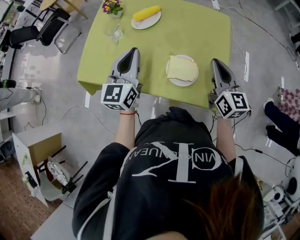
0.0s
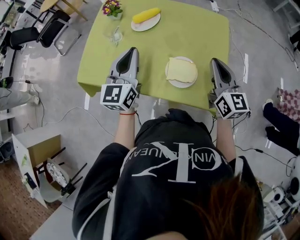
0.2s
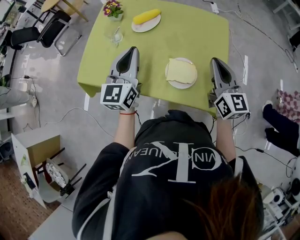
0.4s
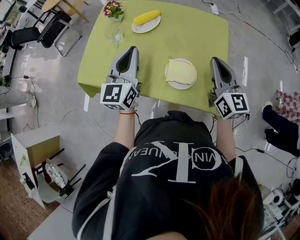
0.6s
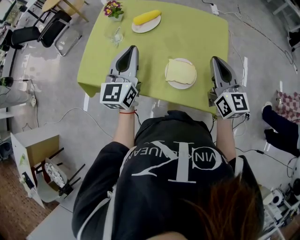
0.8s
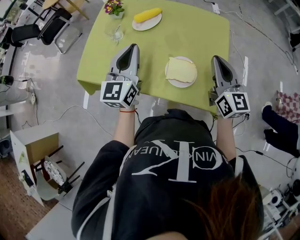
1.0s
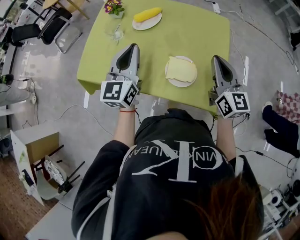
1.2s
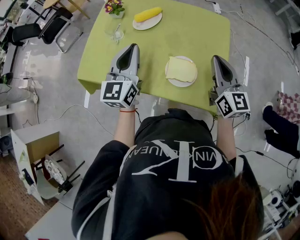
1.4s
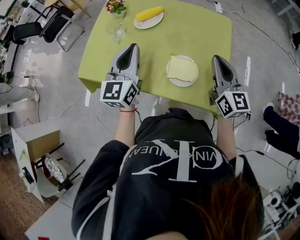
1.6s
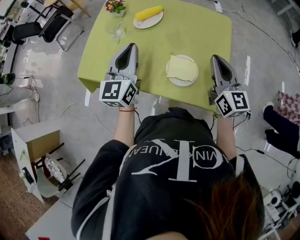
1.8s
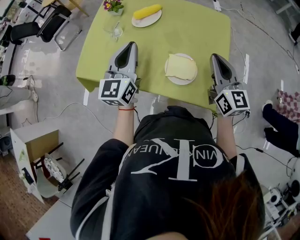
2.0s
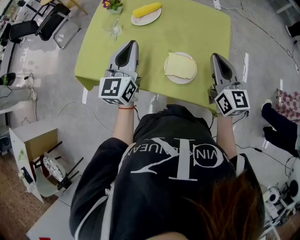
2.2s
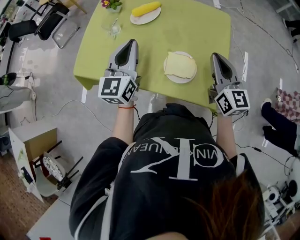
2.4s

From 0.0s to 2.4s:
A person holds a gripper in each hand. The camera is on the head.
From 0.0s to 2.4s: The grippers move only a little.

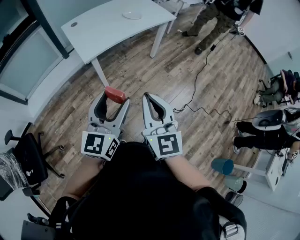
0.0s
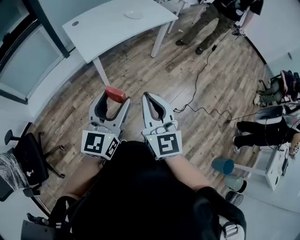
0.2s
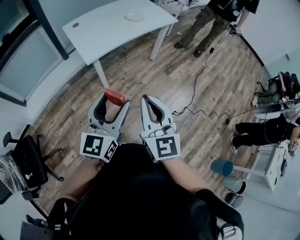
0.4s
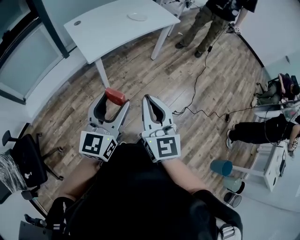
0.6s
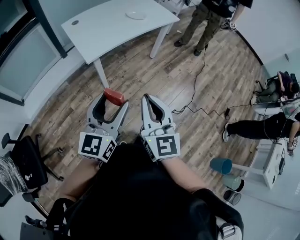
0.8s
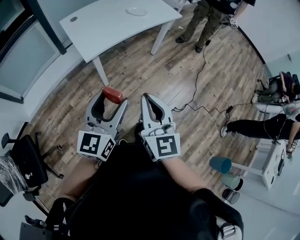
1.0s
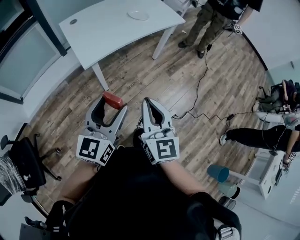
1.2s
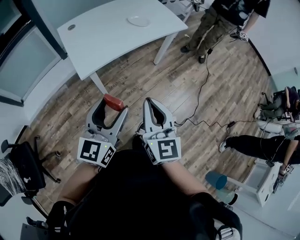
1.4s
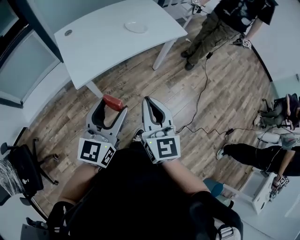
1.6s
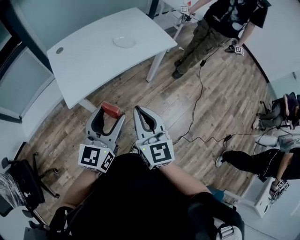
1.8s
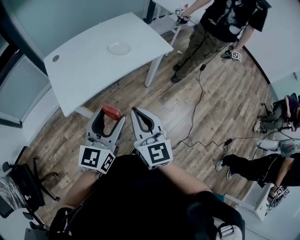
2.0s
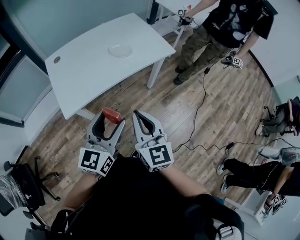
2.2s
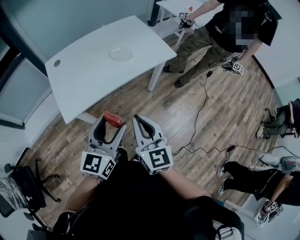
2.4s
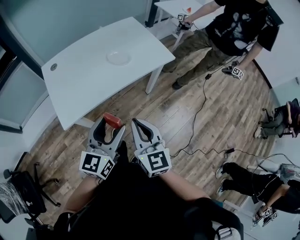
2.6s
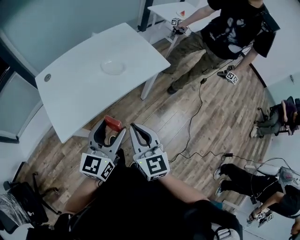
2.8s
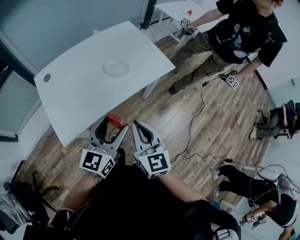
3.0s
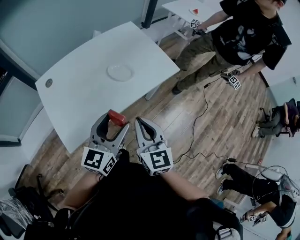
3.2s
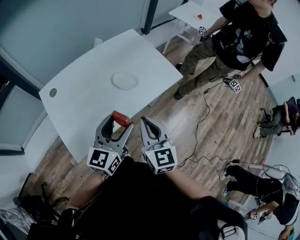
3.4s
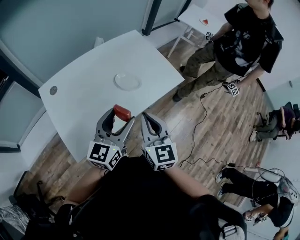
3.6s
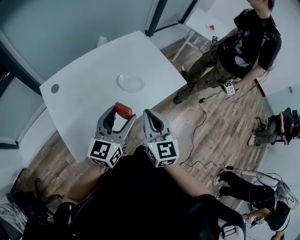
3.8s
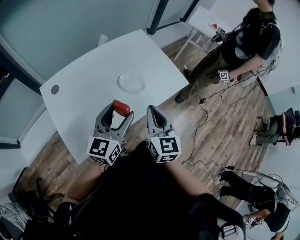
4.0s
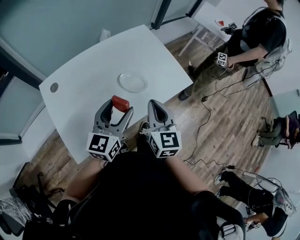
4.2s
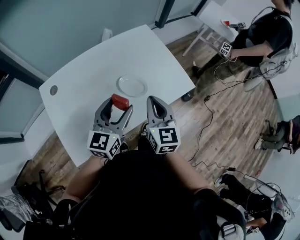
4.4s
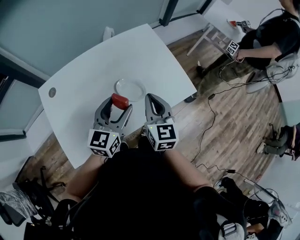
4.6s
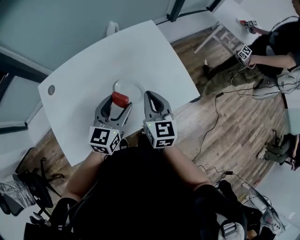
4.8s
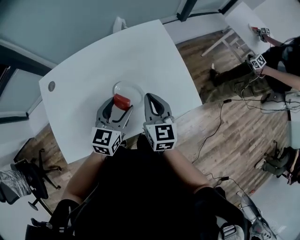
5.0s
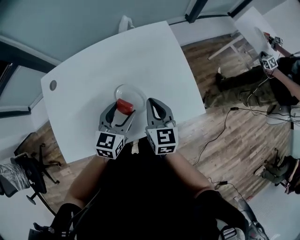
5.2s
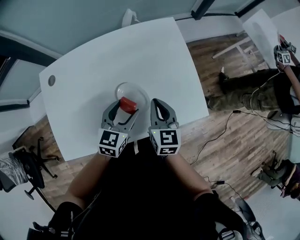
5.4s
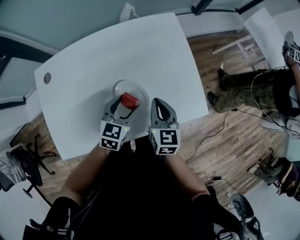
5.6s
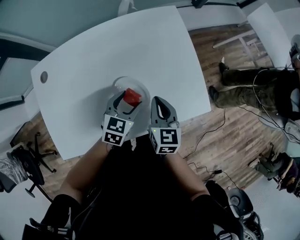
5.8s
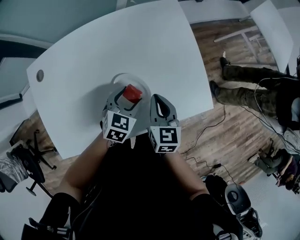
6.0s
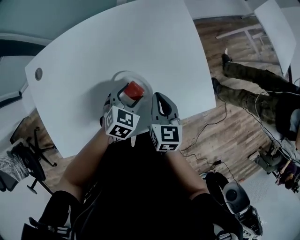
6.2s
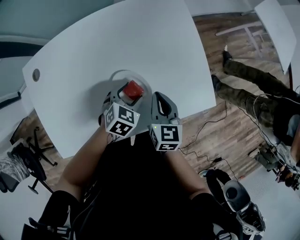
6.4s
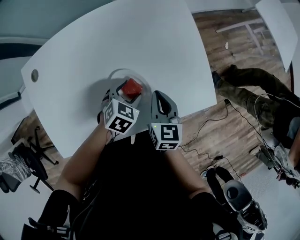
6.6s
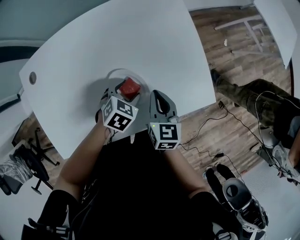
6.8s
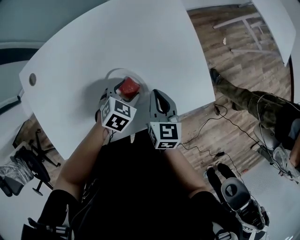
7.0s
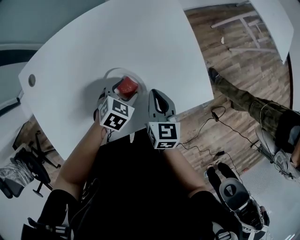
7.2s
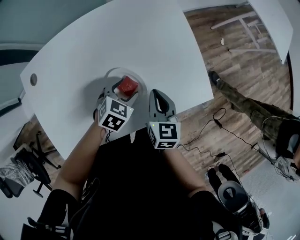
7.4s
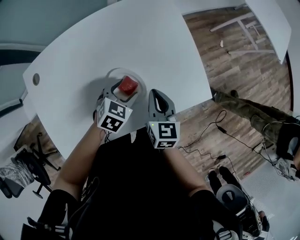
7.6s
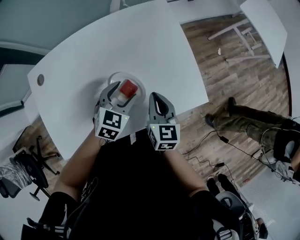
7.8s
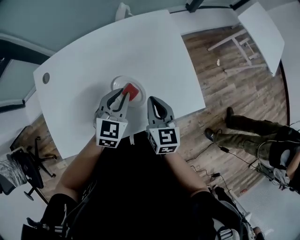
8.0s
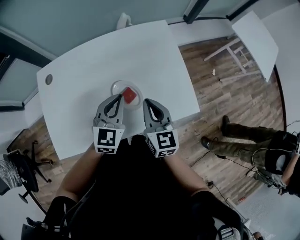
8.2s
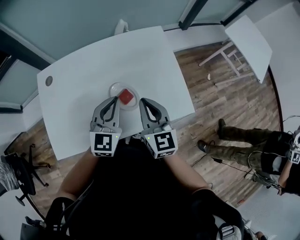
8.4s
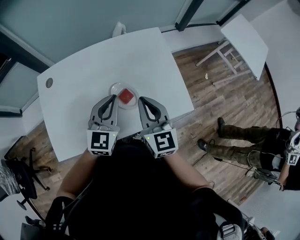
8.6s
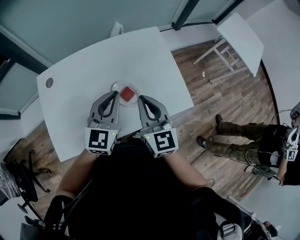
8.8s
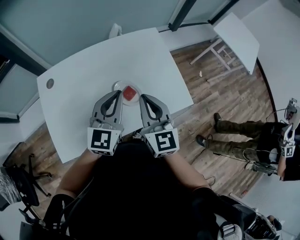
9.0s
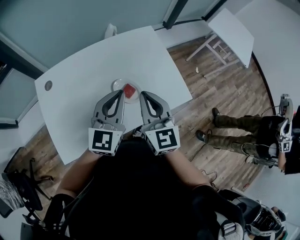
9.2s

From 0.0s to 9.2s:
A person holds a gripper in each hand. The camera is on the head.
From 0.0s to 1.6s: Both grippers travel together forward, roughly 25 cm.
From 1.6s to 3.0s: The grippers both shift forward by some 20 cm.
From 3.0s to 4.6s: The grippers both shift forward by roughly 25 cm.
From 4.6s to 6.2s: The two grippers go approximately 20 cm downward and forward. The left gripper angles its fingers downward, by about 40 degrees.
From 6.2s to 7.6s: There are only small adjustments of the grippers.
From 7.6s to 9.2s: Both grippers move upward, some 20 cm. The right gripper changes its angle by roughly 30 degrees. Meanwhile the left gripper tilts its fingers some 50 degrees upward, and closes.

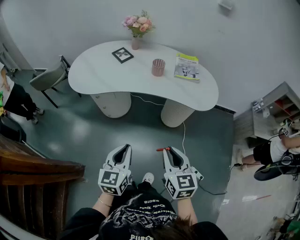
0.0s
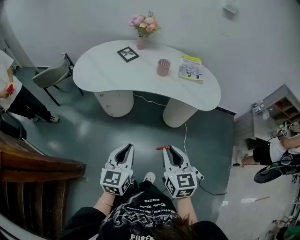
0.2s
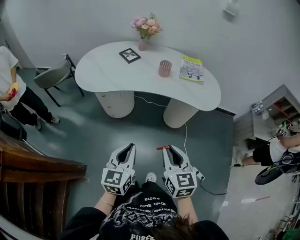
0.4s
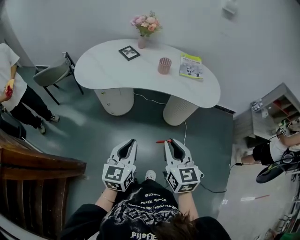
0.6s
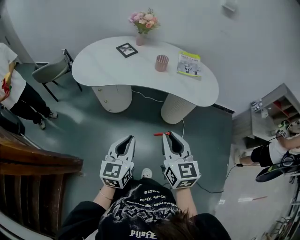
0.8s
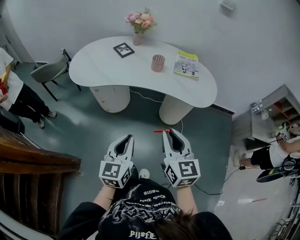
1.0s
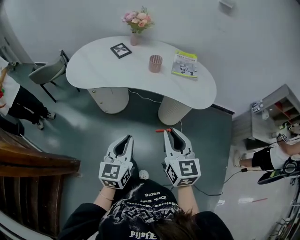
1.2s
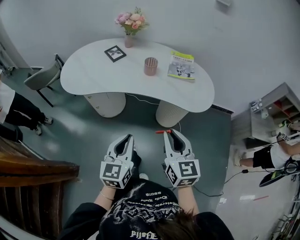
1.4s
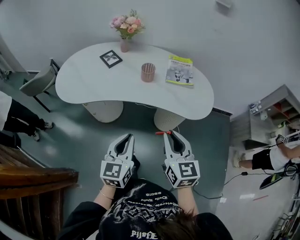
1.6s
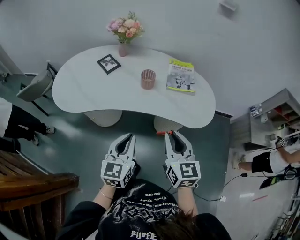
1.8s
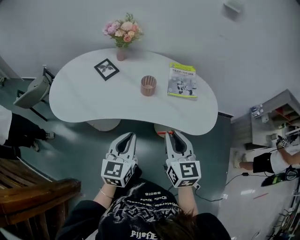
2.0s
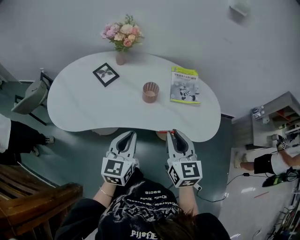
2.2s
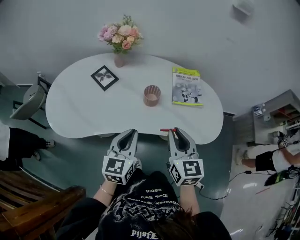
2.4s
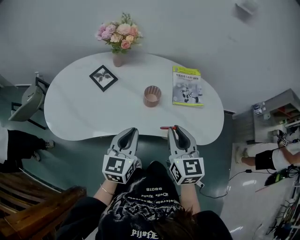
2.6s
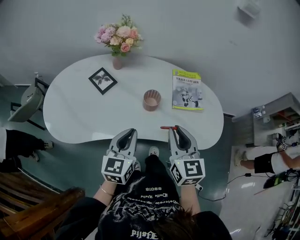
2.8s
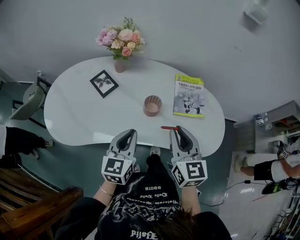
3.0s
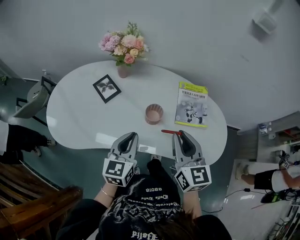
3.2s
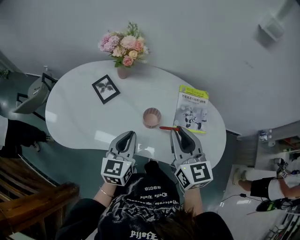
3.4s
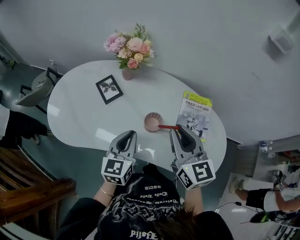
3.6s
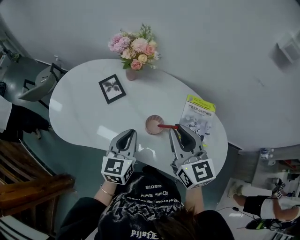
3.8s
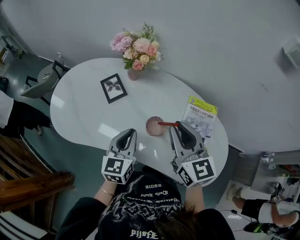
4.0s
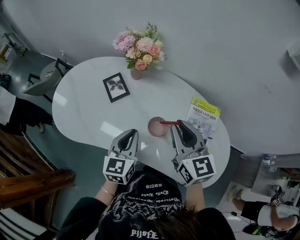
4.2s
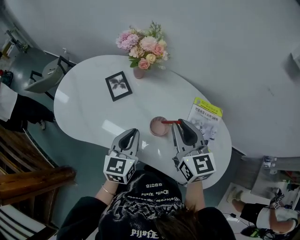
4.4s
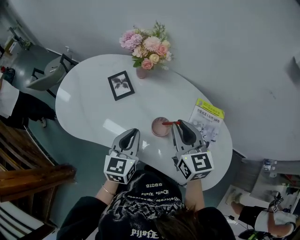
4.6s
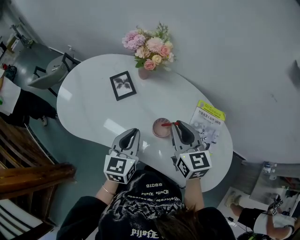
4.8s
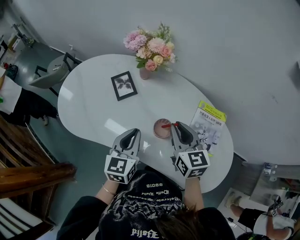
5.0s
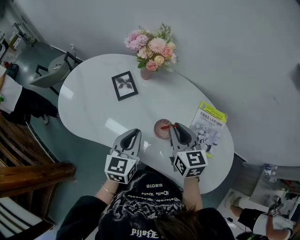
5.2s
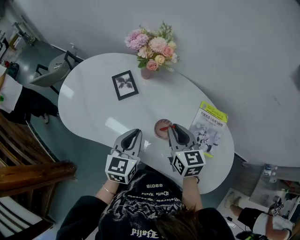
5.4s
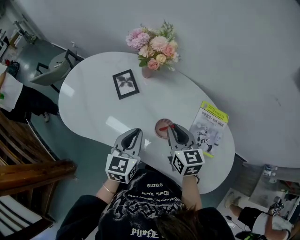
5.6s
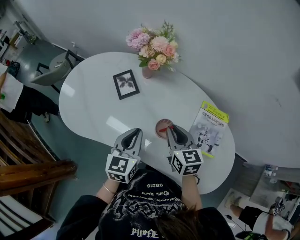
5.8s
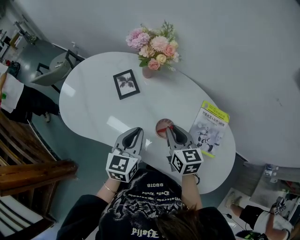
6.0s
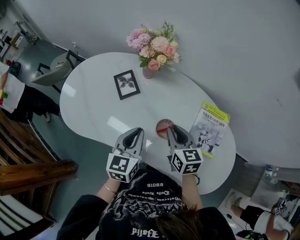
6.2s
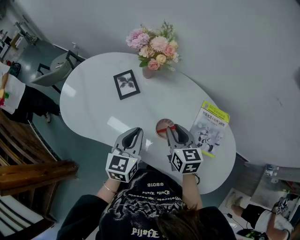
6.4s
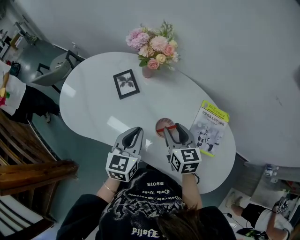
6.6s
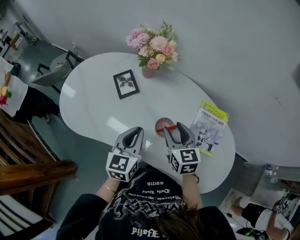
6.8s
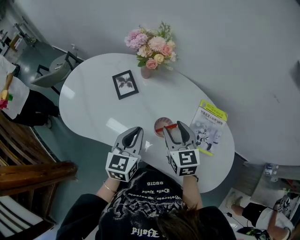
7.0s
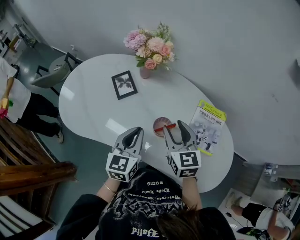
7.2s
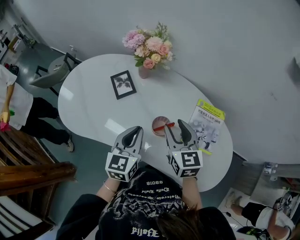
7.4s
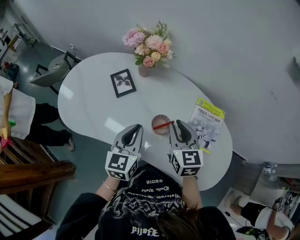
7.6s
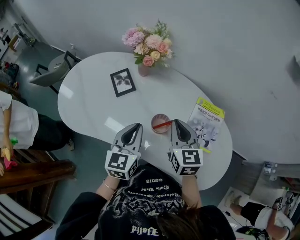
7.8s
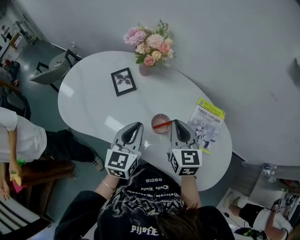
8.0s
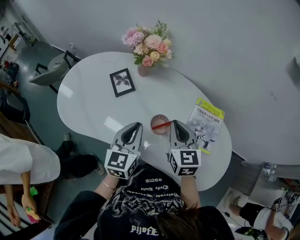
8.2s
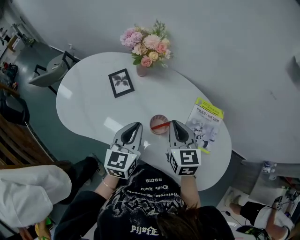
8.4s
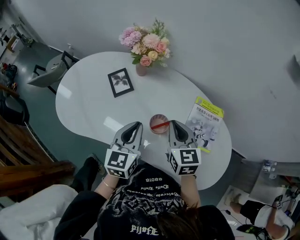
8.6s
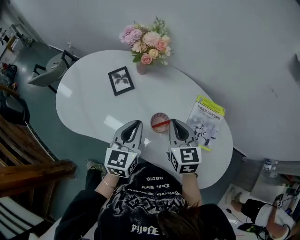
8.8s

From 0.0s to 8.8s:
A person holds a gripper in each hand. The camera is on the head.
From 0.0s to 1.4s: The right gripper heads forward, covering about 10 cm. Meanwhile the left gripper shifts approximately 10 cm forward and to the right.
From 1.4s to 3.0s: Both grippers travel together forward, roughly 35 cm.
From 3.0s to 4.4s: The right gripper travels forward by about 15 cm, and changes its angle by about 20 degrees, while the left gripper shifts about 10 cm forward.
From 4.4s to 5.8s: The right gripper goes some 10 cm downward.
From 5.8s to 7.4s: The right gripper is displaced upward by about 5 cm, and opens its fingers.
From 7.4s to 8.8s: The right gripper closes up.

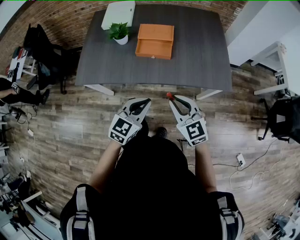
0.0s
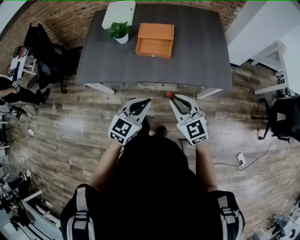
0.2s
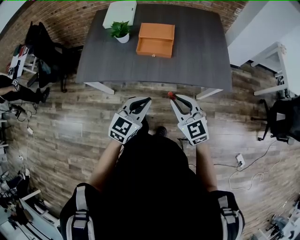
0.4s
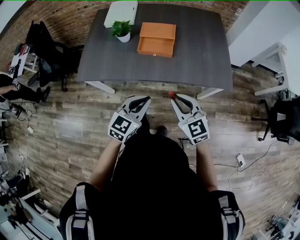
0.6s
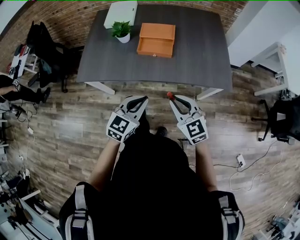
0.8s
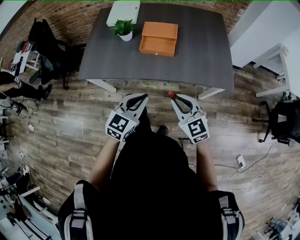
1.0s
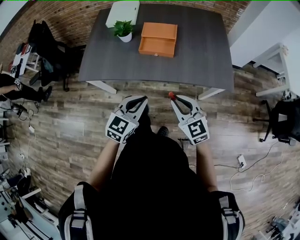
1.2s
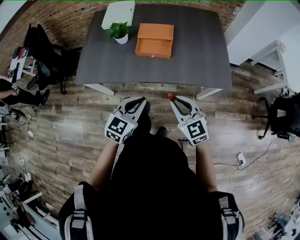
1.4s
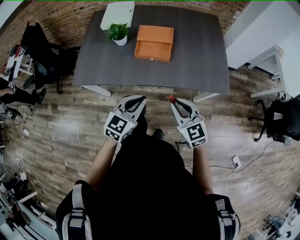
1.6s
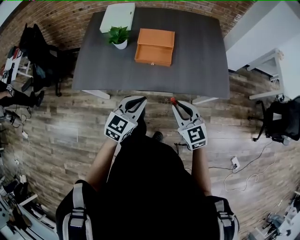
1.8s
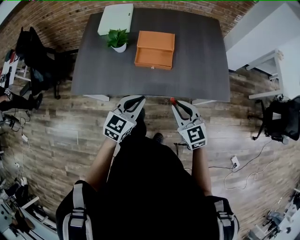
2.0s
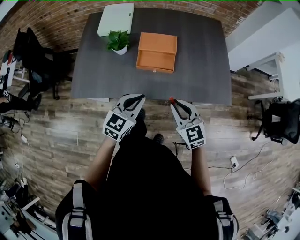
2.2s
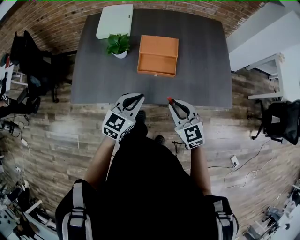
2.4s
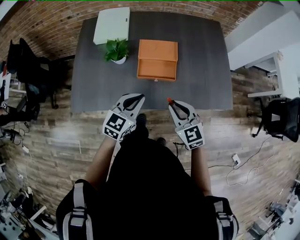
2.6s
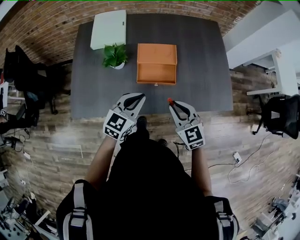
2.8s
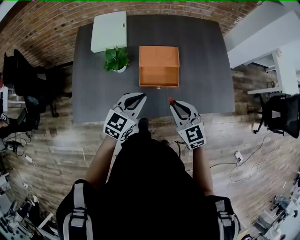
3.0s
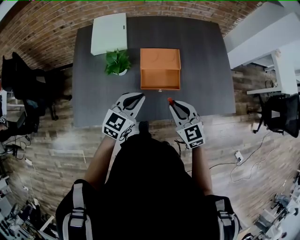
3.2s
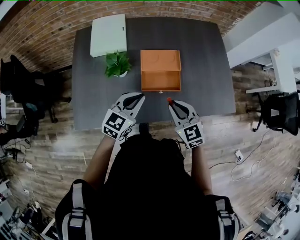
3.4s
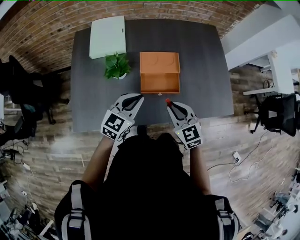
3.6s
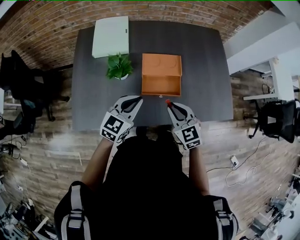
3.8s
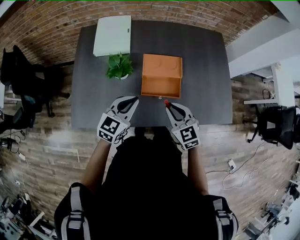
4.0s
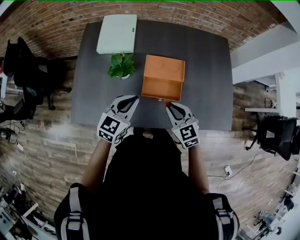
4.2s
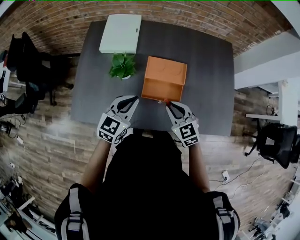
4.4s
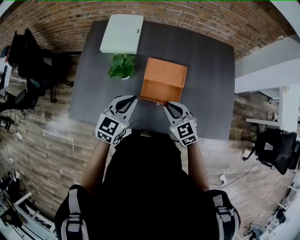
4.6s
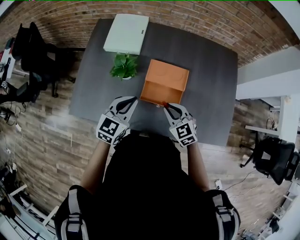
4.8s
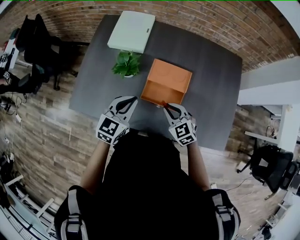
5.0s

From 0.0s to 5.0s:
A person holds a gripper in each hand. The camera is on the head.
From 0.0s to 1.6s: There are only small adjustments of the grippers.
From 1.6s to 3.4s: Both grippers move forward and to the left, approximately 30 cm.
From 3.4s to 5.0s: The right gripper moves forward and downward, about 10 cm, and changes its angle by approximately 30 degrees, while the left gripper swivels roughly 20 degrees.
